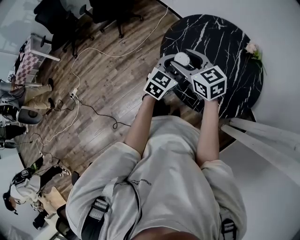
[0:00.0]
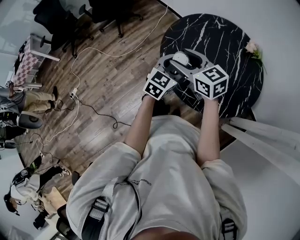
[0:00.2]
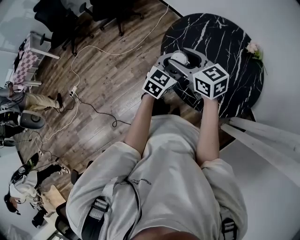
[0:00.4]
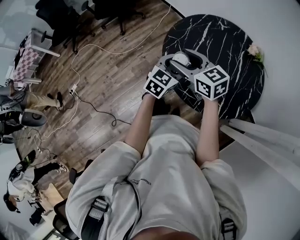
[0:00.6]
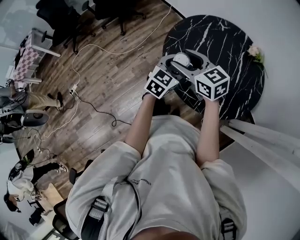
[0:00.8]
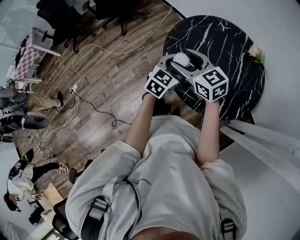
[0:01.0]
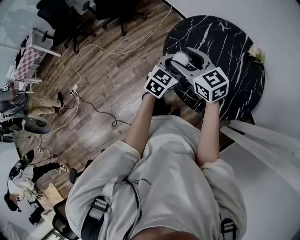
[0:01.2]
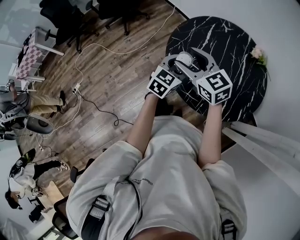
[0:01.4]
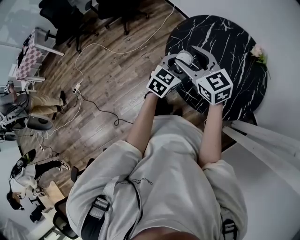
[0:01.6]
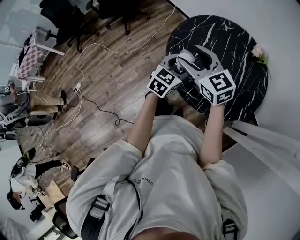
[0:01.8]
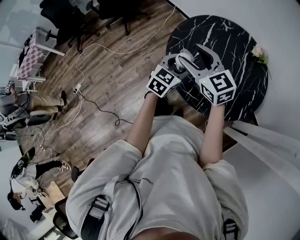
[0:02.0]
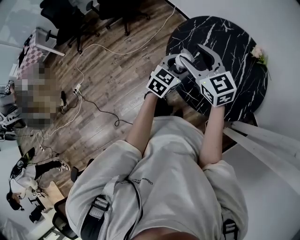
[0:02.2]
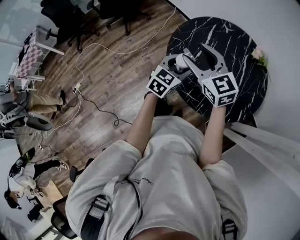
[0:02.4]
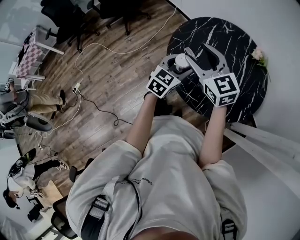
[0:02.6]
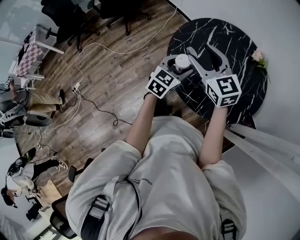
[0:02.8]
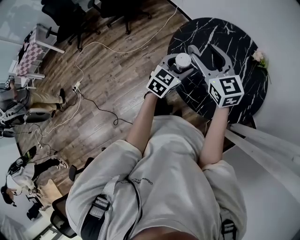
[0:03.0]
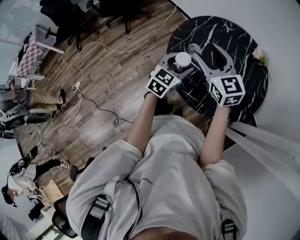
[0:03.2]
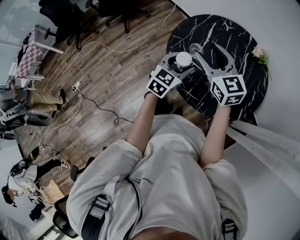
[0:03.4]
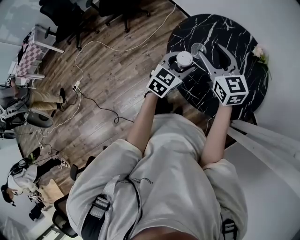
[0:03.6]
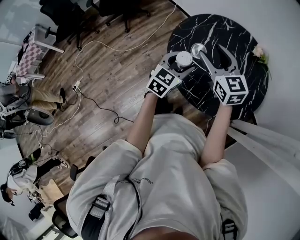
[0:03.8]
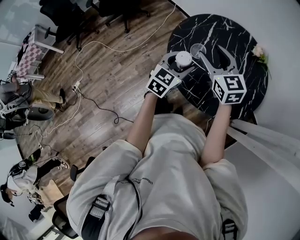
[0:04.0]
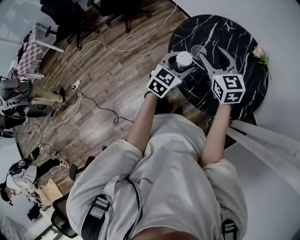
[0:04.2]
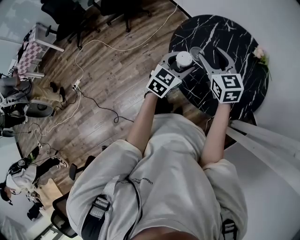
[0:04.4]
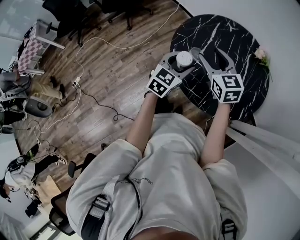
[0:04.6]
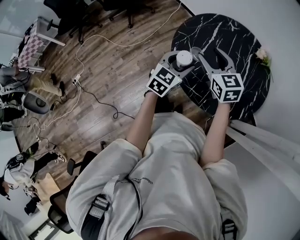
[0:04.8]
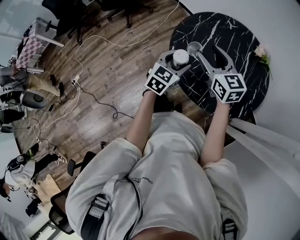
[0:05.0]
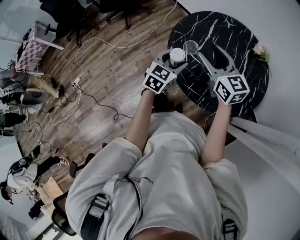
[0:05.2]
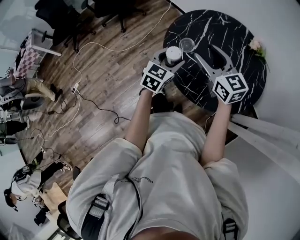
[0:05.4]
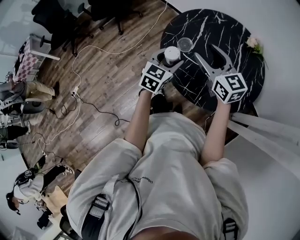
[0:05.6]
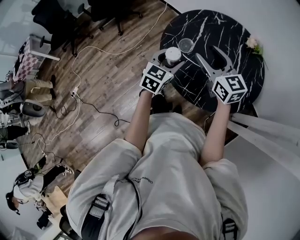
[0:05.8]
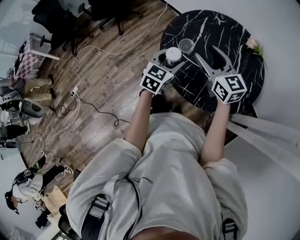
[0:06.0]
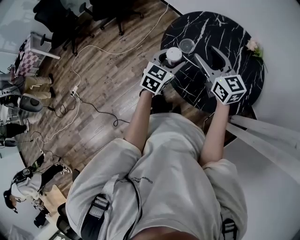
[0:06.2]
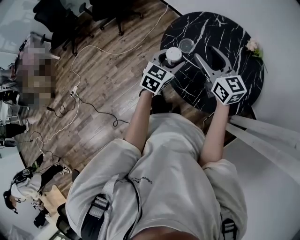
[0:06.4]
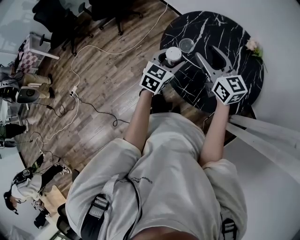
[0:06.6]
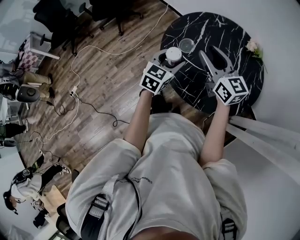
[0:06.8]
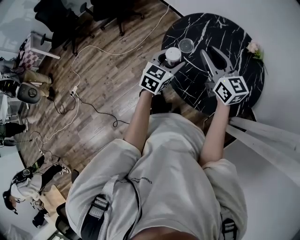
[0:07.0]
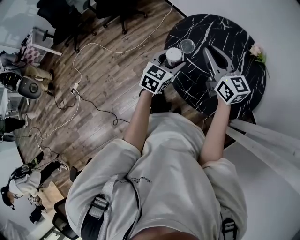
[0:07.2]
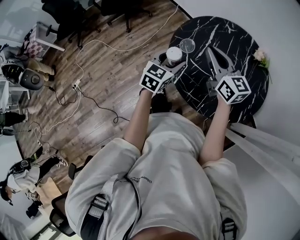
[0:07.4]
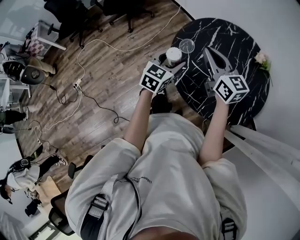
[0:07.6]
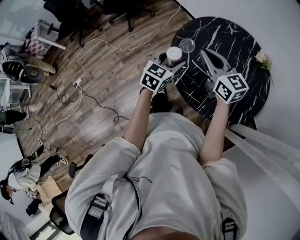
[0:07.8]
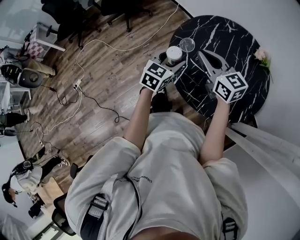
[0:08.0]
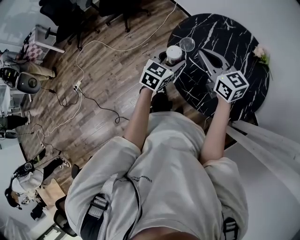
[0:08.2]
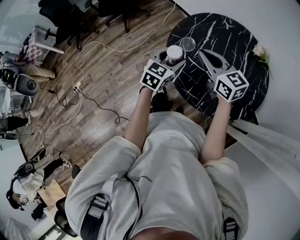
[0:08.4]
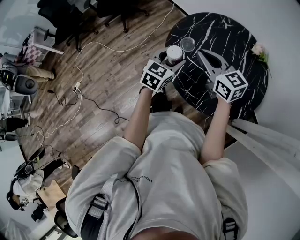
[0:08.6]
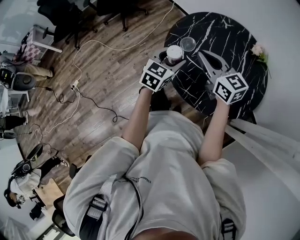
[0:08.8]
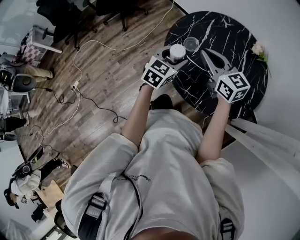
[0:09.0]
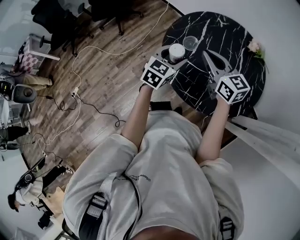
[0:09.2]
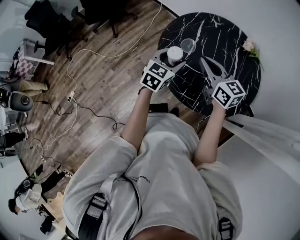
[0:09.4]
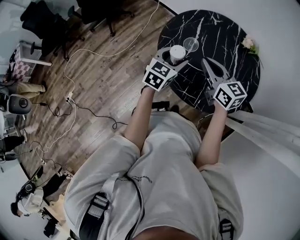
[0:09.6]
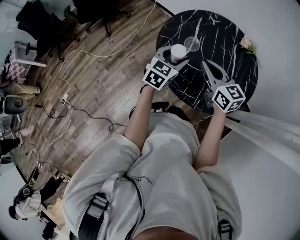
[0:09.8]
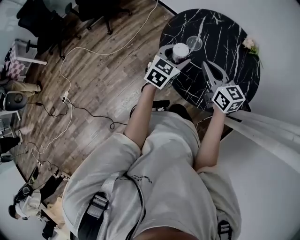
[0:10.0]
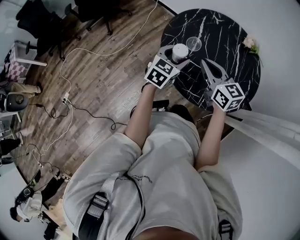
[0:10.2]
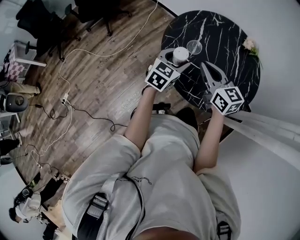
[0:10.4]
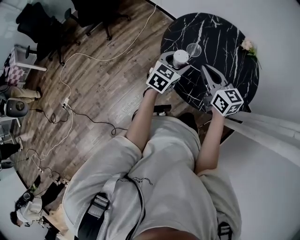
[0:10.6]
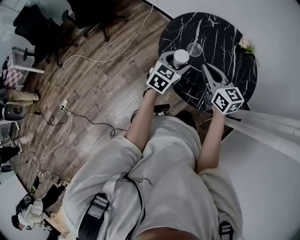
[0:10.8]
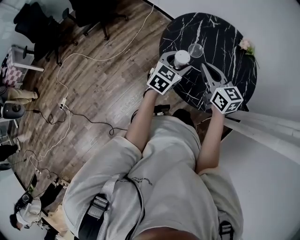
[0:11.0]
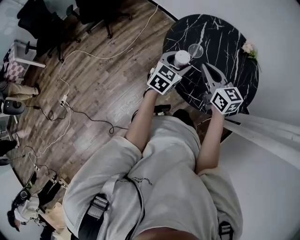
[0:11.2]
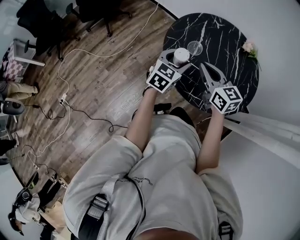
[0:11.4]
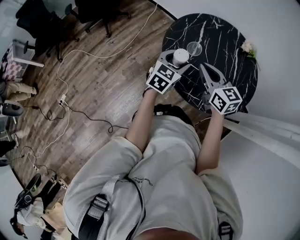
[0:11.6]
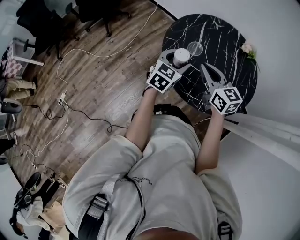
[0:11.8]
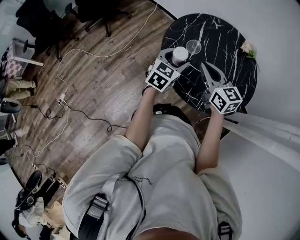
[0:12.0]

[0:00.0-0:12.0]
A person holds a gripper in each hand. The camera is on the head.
0:00.0 to 0:01.6: The grippers make only small movements.
0:01.6 to 0:03.0: The right gripper changes place by approximately 5 cm.
0:03.0 to 0:04.4: The right gripper moves roughly 5 cm.
0:04.4 to 0:06.0: The grippers make only small movements.
0:06.0 to 0:07.6: The left gripper heads to the left, covering about 5 cm; the right gripper shifts by about 5 cm, and closes.
0:07.6 to 0:09.0: The grippers move only a little.
0:09.0 to 0:10.4: The right gripper moves approximately 5 cm.
0:10.4 to 0:12.0: The grippers stay close to where they were, moving slightly.

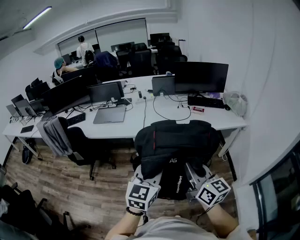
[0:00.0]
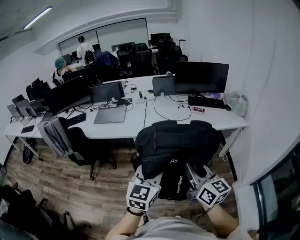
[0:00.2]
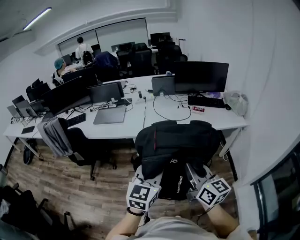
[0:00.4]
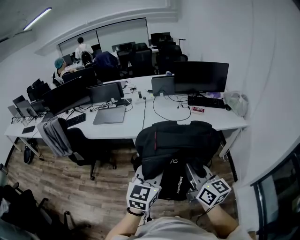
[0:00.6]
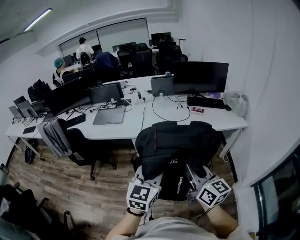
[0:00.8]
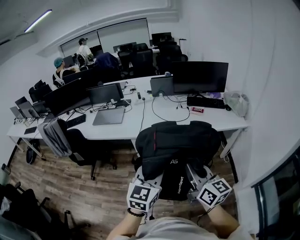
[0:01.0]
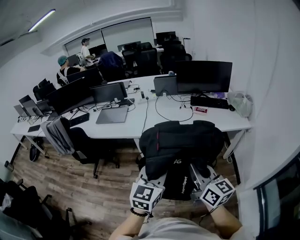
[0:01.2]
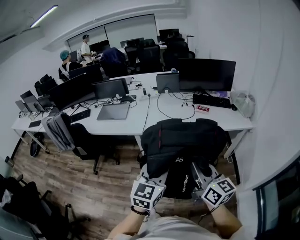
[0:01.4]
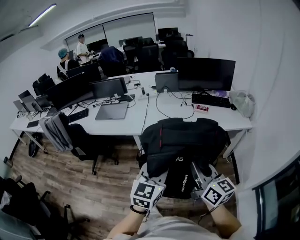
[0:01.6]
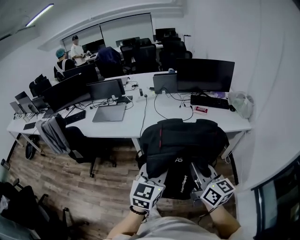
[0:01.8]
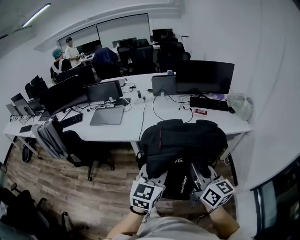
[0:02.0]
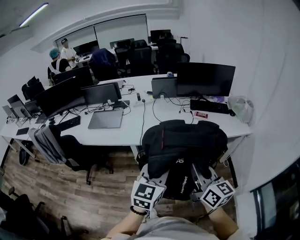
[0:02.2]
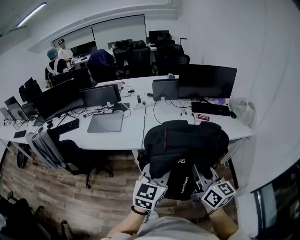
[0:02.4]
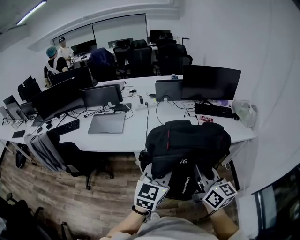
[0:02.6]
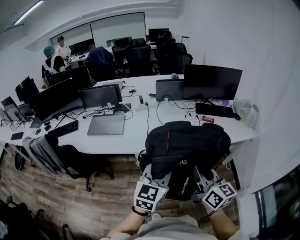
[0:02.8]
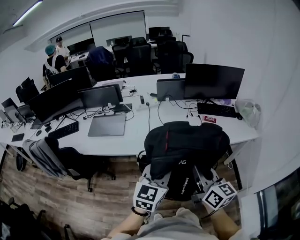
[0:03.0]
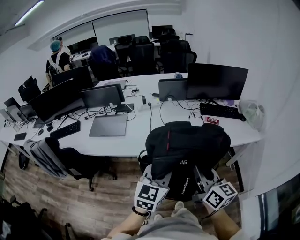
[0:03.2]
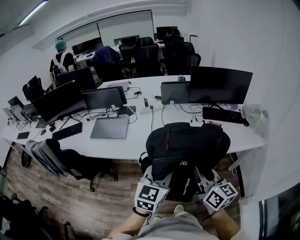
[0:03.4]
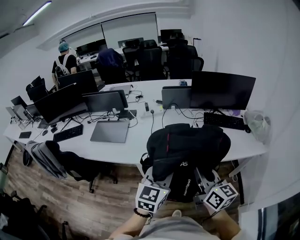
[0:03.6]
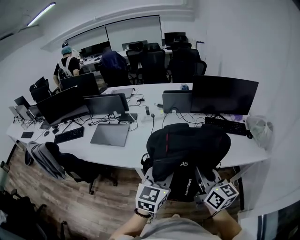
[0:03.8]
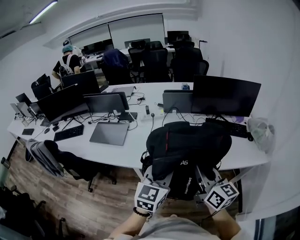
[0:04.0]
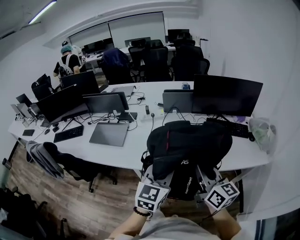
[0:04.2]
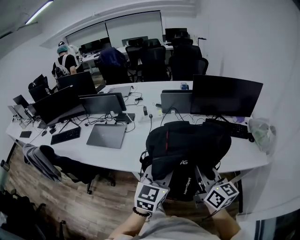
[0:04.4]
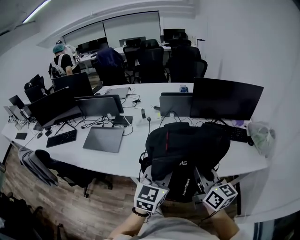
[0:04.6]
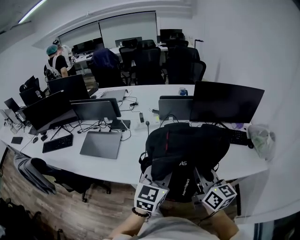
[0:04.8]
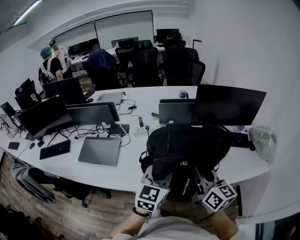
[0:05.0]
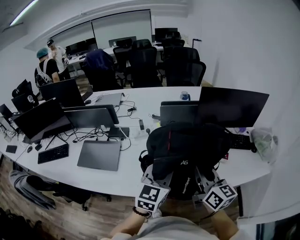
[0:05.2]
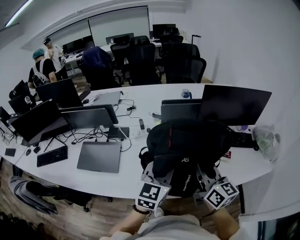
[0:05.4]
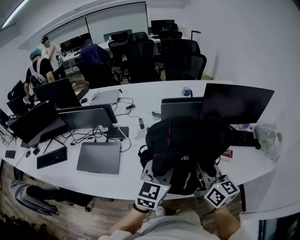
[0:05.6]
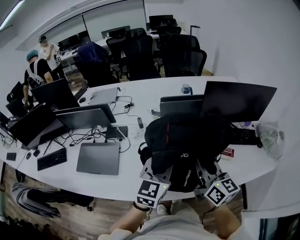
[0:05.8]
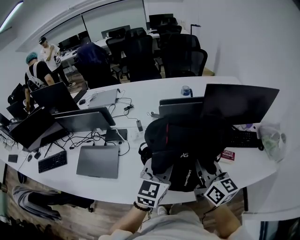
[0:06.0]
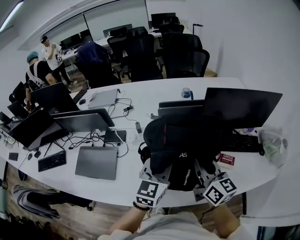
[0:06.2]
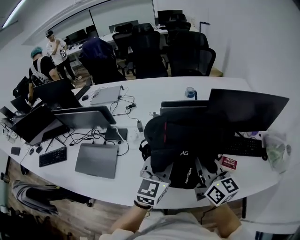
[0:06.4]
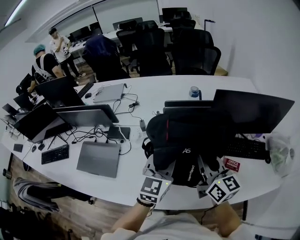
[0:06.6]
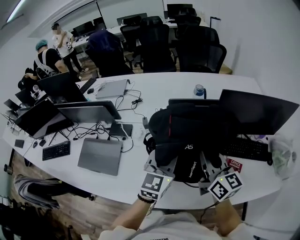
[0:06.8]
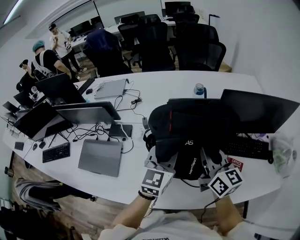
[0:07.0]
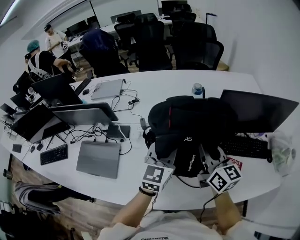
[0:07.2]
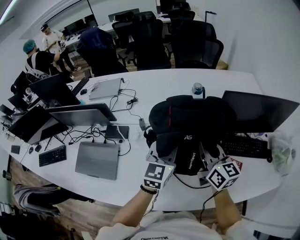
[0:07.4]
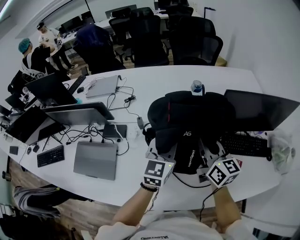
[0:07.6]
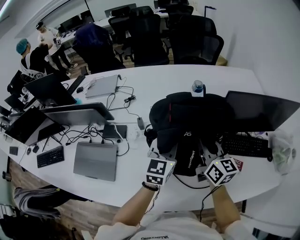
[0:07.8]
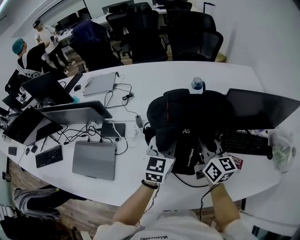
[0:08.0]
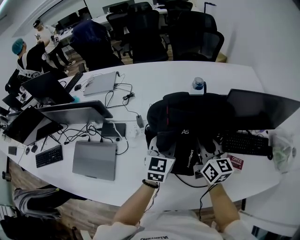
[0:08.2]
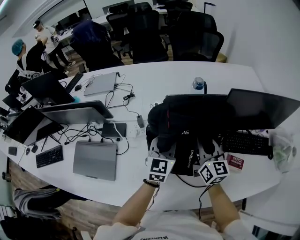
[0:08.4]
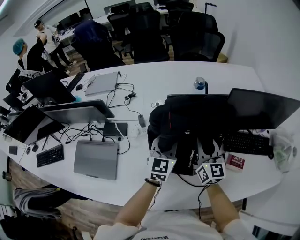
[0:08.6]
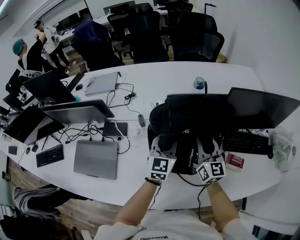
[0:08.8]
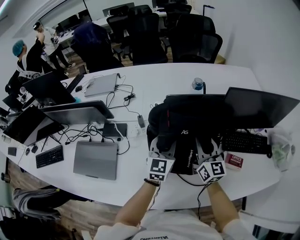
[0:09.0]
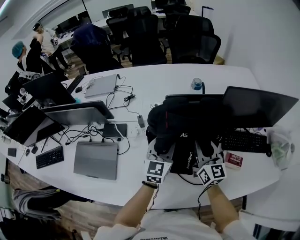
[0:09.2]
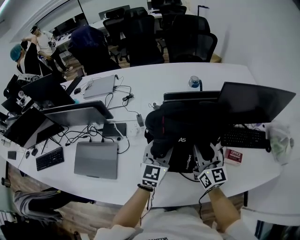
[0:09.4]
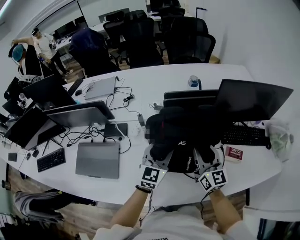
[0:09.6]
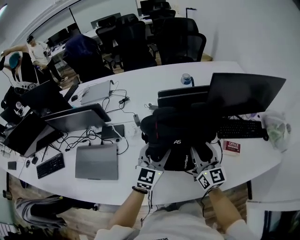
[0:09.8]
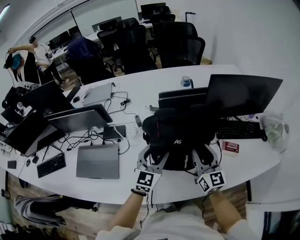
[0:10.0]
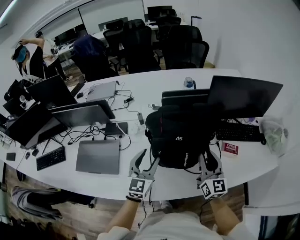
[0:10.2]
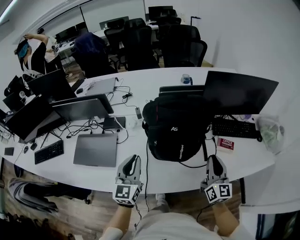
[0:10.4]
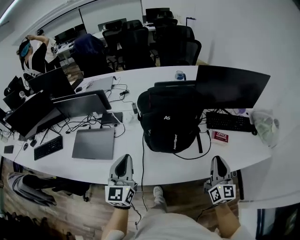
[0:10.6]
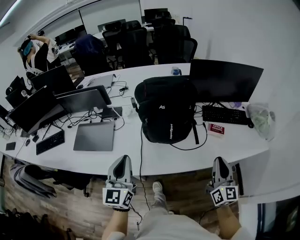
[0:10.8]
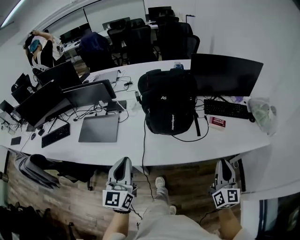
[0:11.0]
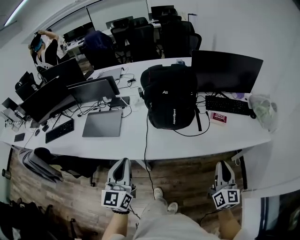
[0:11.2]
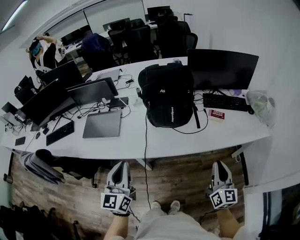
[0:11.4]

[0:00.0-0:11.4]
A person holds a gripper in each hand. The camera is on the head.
0:00.0 to 0:01.4: Both grippers travel together to the right, roughly 10 cm.
0:01.4 to 0:02.8: The grippers both shift forward and to the left by approximately 25 cm.
0:02.8 to 0:04.2: Both grippers move forward and to the right, some 20 cm.
0:04.2 to 0:05.6: The right gripper goes roughly 25 cm forward and to the left, while the left gripper shifts roughly 25 cm forward.
0:05.6 to 0:07.2: Both grippers travel together forward, roughly 20 cm.
0:07.2 to 0:08.6: Both grippers travel together downward and forward, approximately 10 cm.
0:08.6 to 0:10.0: The grippers both shift backward by approximately 15 cm. The left gripper opens up.
0:10.0 to 0:11.4: Both grippers are carried backward, approximately 40 cm. The left gripper turns by some 30 degrees, and closes its fingers, while the right gripper closes up.

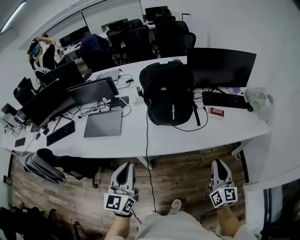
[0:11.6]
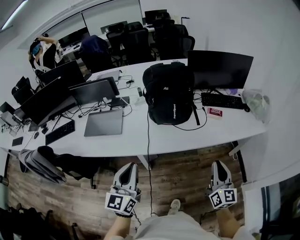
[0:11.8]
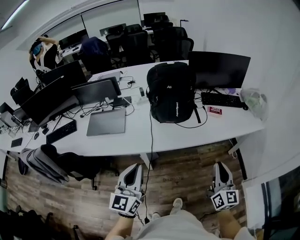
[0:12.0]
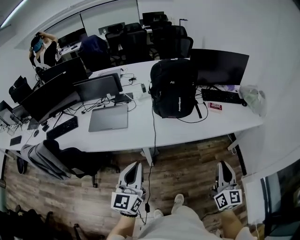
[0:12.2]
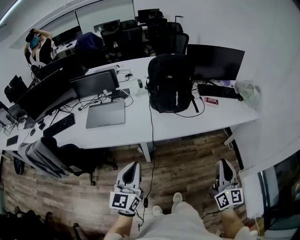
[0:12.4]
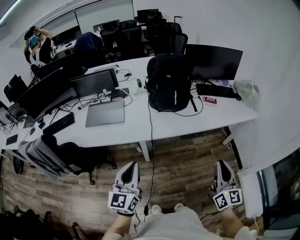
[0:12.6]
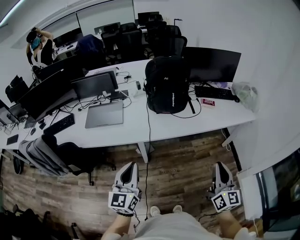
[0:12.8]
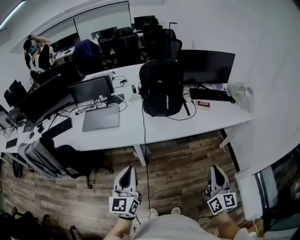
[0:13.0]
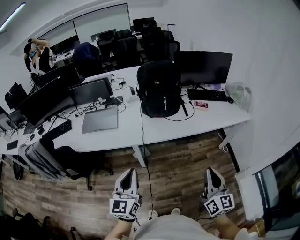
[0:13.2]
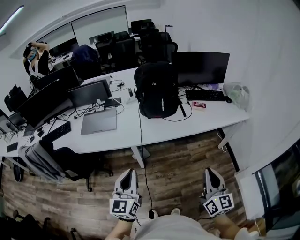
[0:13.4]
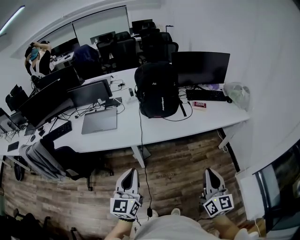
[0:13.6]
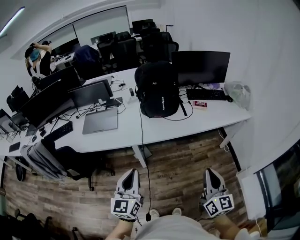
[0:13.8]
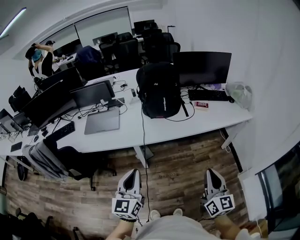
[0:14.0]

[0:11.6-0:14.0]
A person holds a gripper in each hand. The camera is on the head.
0:11.6 to 0:12.8: Both grippers travel together backward, about 15 cm.
0:12.8 to 0:14.0: The left gripper goes approximately 5 cm to the right. Meanwhile the right gripper moves about 5 cm.
